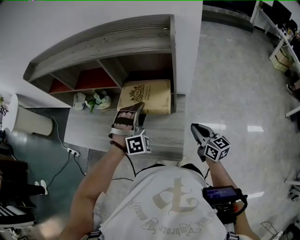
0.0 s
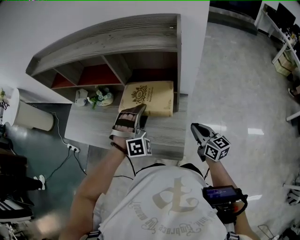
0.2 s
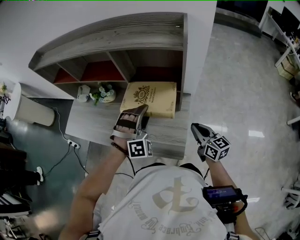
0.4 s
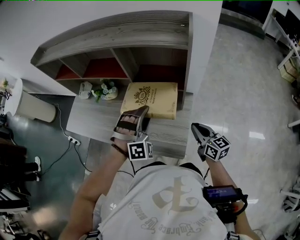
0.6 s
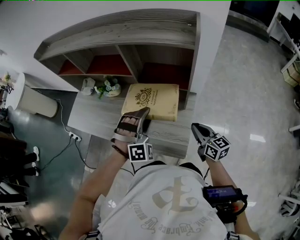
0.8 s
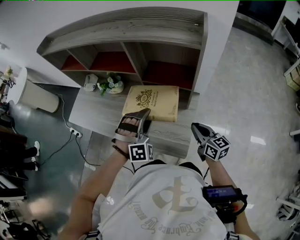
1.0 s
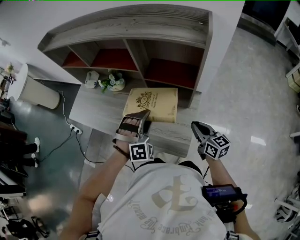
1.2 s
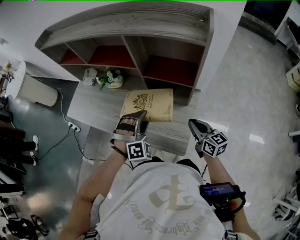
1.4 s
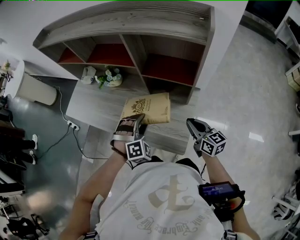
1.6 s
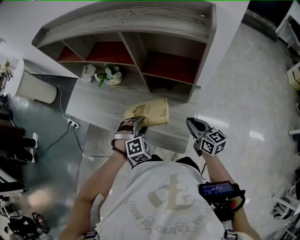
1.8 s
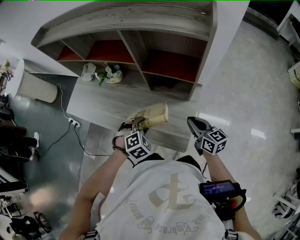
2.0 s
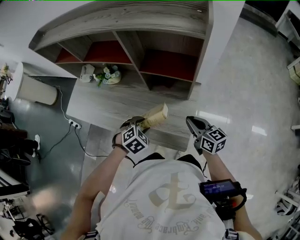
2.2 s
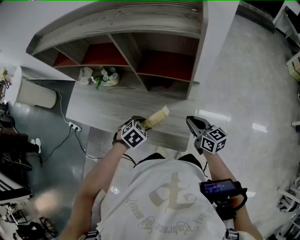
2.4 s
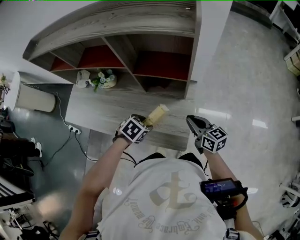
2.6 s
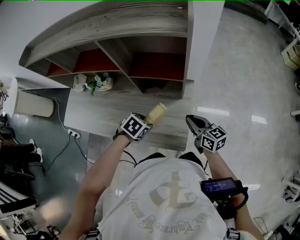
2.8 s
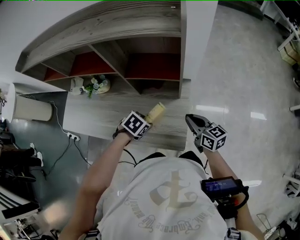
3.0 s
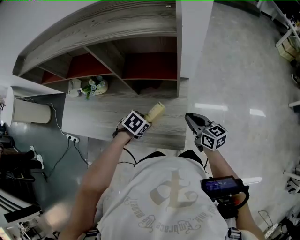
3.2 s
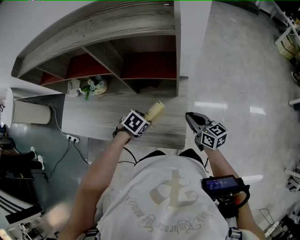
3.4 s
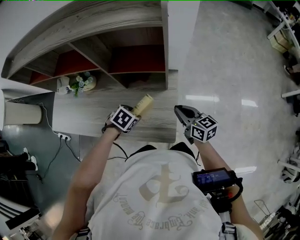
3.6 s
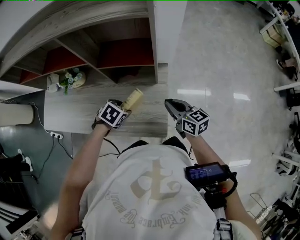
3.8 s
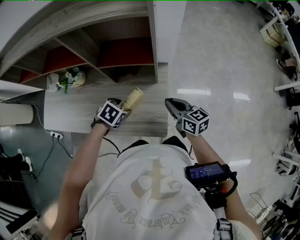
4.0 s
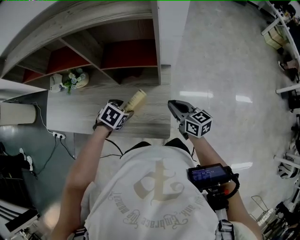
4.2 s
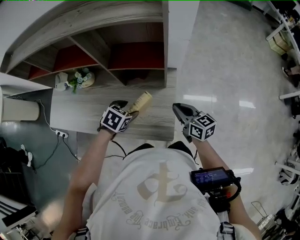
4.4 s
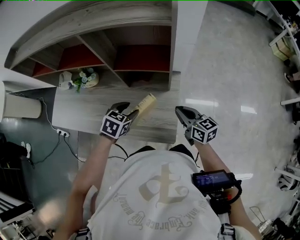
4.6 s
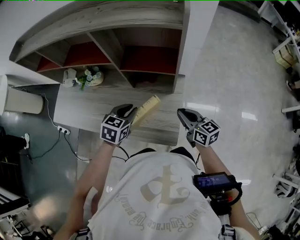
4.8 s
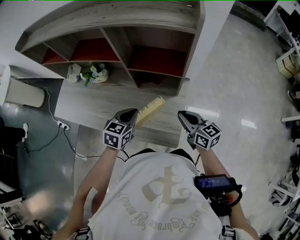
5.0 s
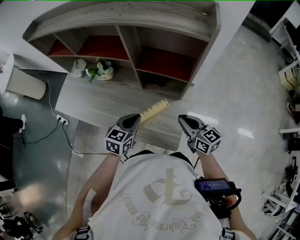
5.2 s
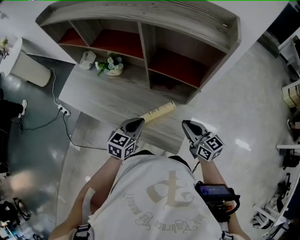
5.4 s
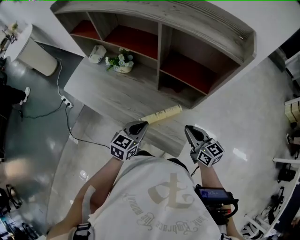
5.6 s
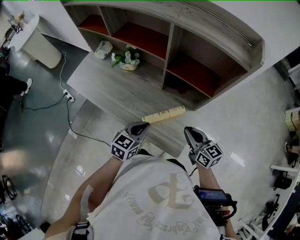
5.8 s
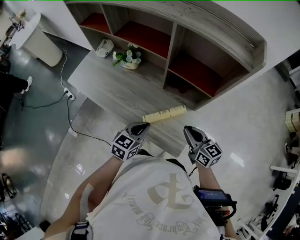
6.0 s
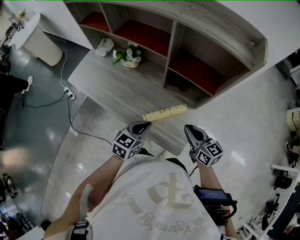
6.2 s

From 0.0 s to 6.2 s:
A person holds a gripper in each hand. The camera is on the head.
From 0.0 s to 1.6 s: The left gripper shifts about 15 cm to the left, downward and backward, and swivels roughly 20 degrees. Meanwhile the right gripper goes roughly 5 cm to the left.
From 1.6 s to 3.2 s: The left gripper moves downward, about 10 cm, and angles its fingers downward, by about 30 degrees.
From 3.2 s to 4.6 s: The left gripper is displaced upward by some 5 cm, and turns by about 20 degrees.
From 4.6 s to 6.2 s: The right gripper heads to the left, covering about 10 cm, and swivels approximately 20 degrees. Meanwhile the left gripper travels backward and to the left by about 10 cm, changes its angle by about 30 degrees, and closes up.

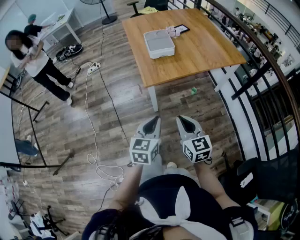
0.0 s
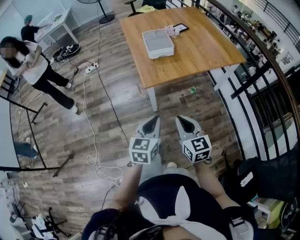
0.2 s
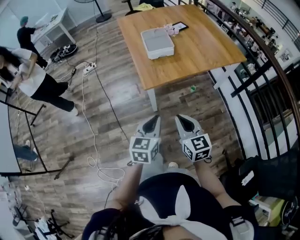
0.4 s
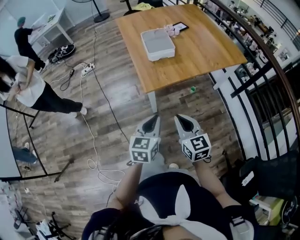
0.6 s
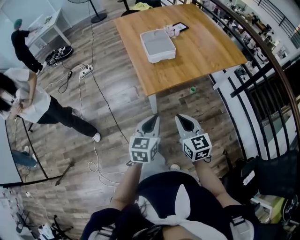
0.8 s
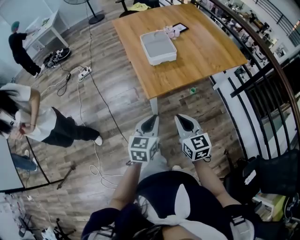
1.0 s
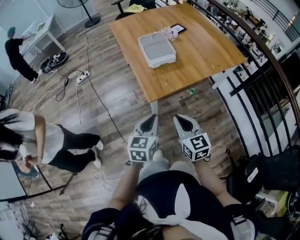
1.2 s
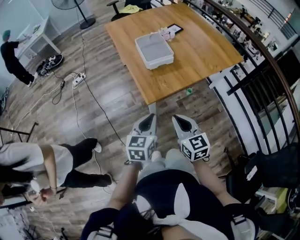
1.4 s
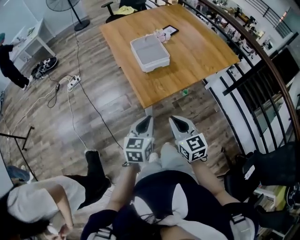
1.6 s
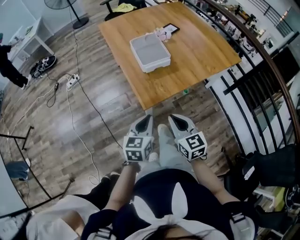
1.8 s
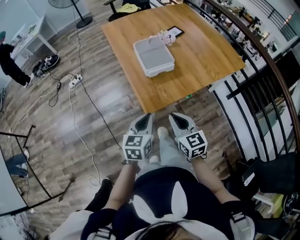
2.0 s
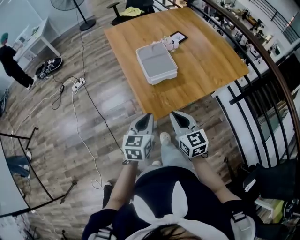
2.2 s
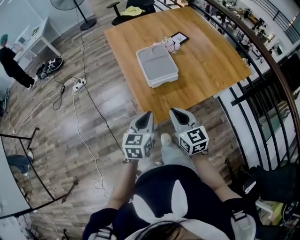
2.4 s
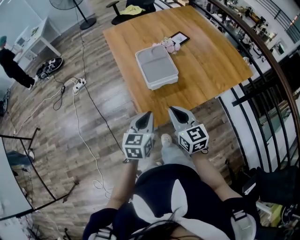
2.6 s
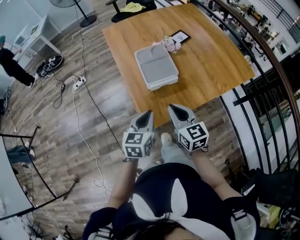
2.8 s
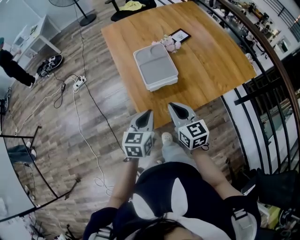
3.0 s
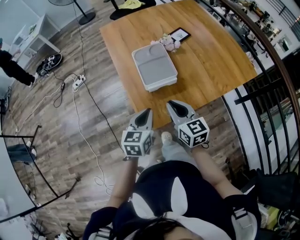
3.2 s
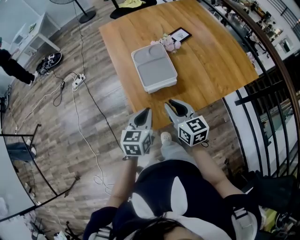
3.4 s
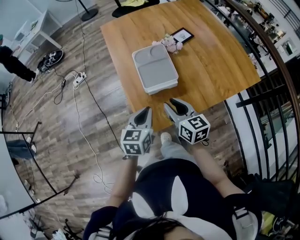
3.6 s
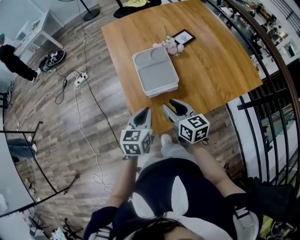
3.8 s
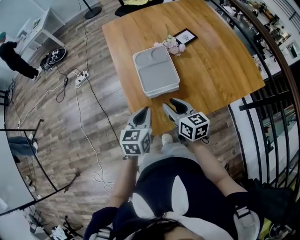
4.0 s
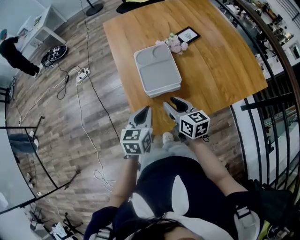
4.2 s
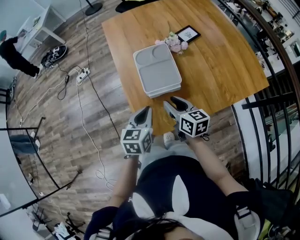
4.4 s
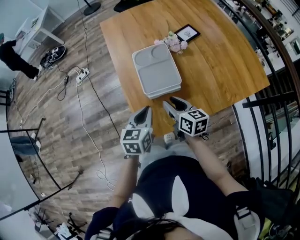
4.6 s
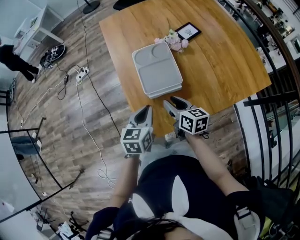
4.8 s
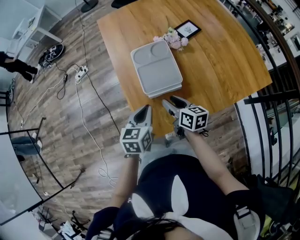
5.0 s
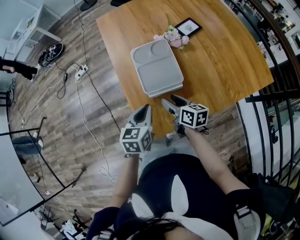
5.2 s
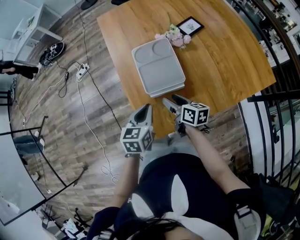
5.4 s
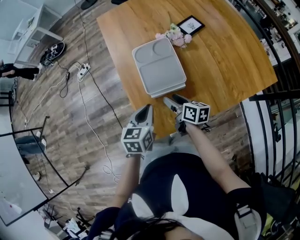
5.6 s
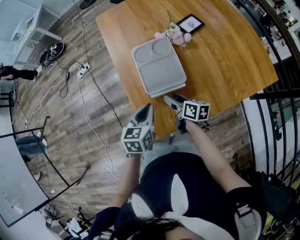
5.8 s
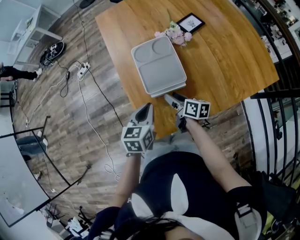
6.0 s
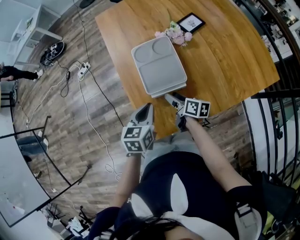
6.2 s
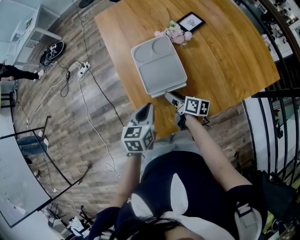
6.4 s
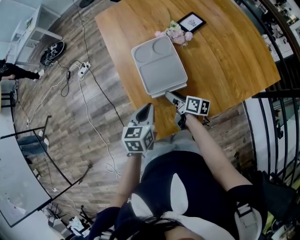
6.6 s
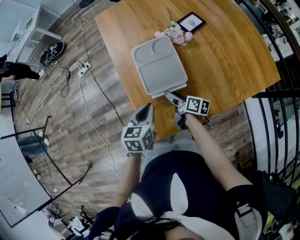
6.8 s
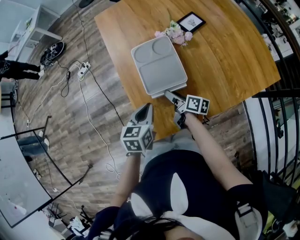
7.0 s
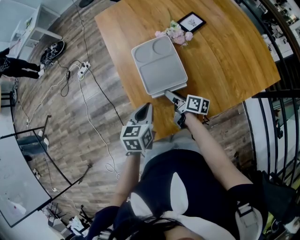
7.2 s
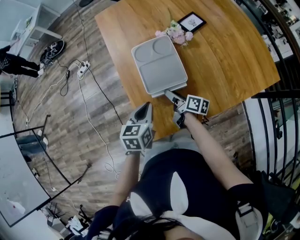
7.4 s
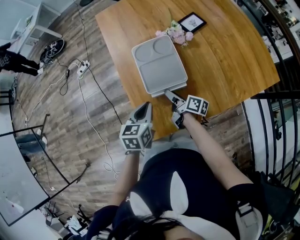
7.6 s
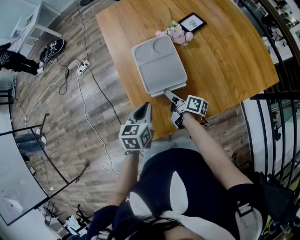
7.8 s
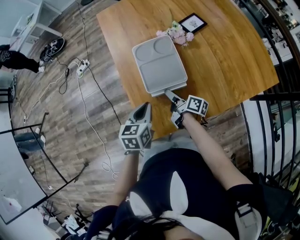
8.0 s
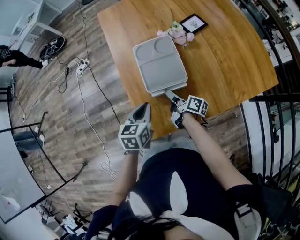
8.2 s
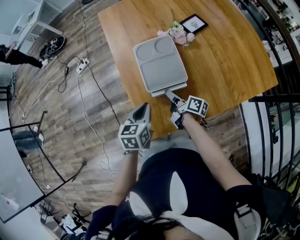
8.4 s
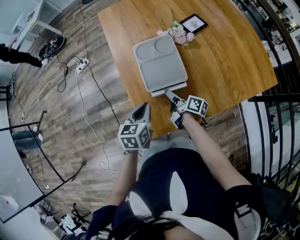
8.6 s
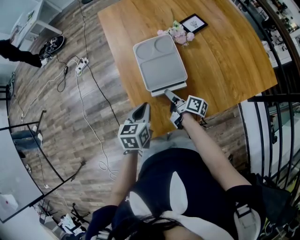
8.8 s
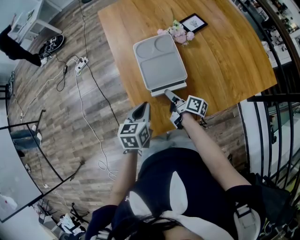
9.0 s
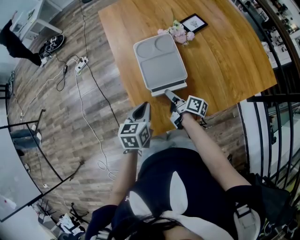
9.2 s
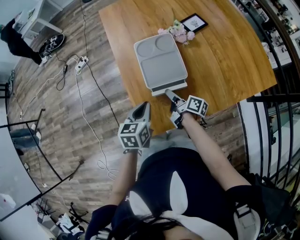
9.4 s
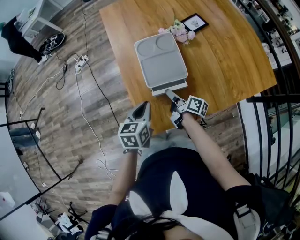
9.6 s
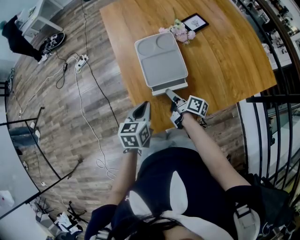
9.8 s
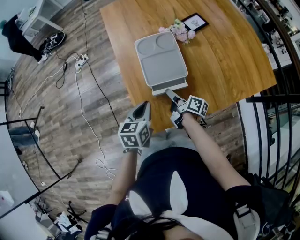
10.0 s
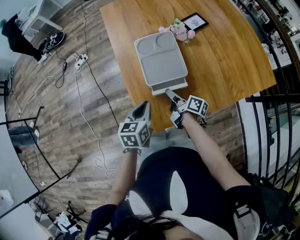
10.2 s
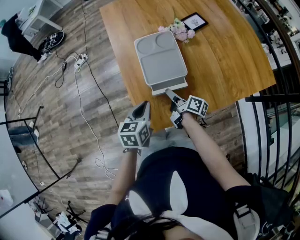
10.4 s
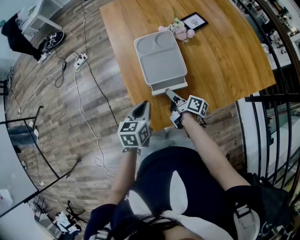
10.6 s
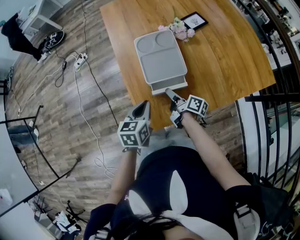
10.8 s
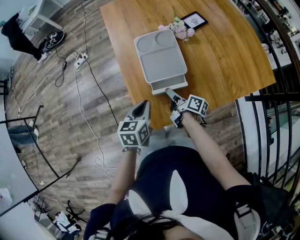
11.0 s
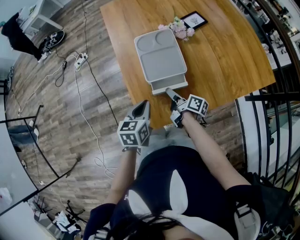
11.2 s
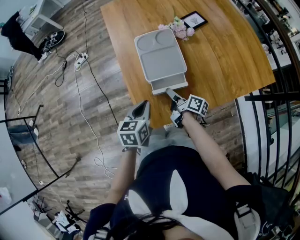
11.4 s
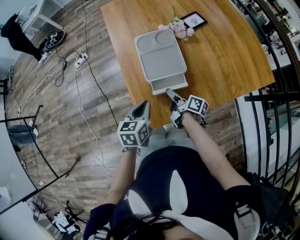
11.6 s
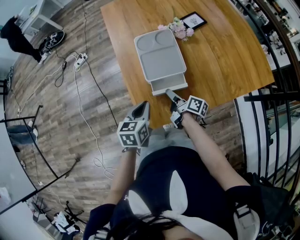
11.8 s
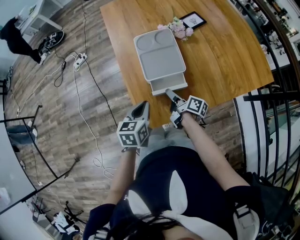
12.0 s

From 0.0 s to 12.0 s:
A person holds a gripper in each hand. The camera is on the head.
From 0.0 s to 1.6 s: The two grippers go some 20 cm forward and to the left.
From 1.6 s to 3.0 s: The two grippers go some 25 cm forward.
From 3.0 s to 4.4 s: The right gripper goes some 15 cm forward and downward, swivels roughly 20 degrees, and opens up, while the left gripper goes about 10 cm forward.
From 4.4 s to 6.0 s: The right gripper shifts about 15 cm downward and forward, changes its angle by about 30 degrees, and opens up, while the left gripper moves some 5 cm.
From 6.0 s to 7.6 s: The grippers stay close to where they were, moving slightly.
From 7.6 s to 12.0 s: There are only small adjustments of the grippers.

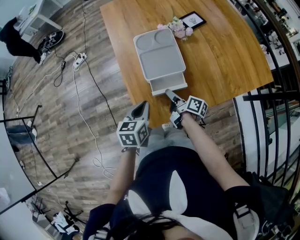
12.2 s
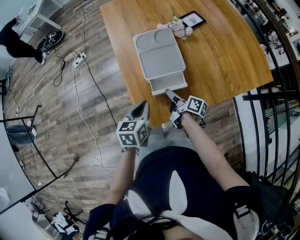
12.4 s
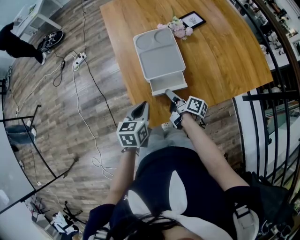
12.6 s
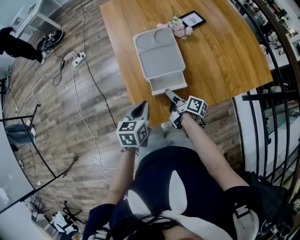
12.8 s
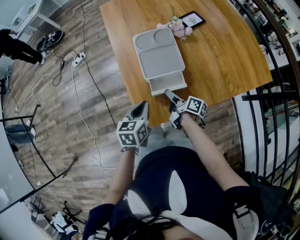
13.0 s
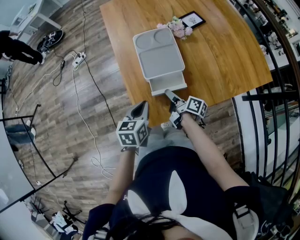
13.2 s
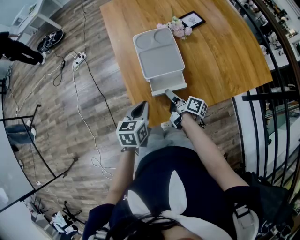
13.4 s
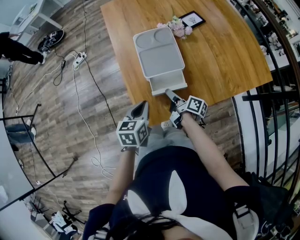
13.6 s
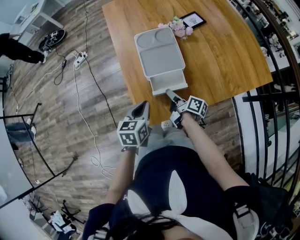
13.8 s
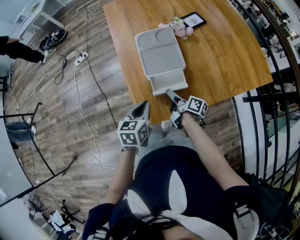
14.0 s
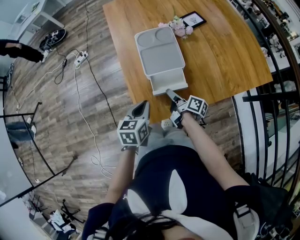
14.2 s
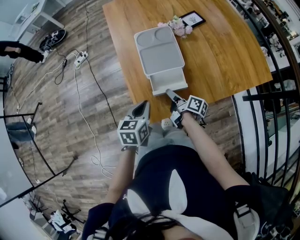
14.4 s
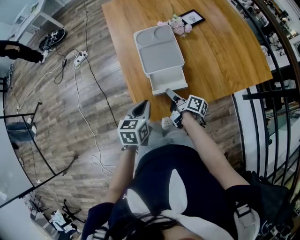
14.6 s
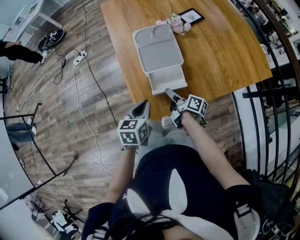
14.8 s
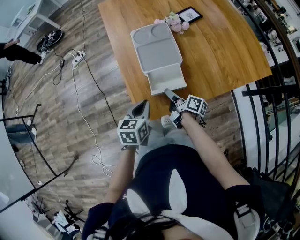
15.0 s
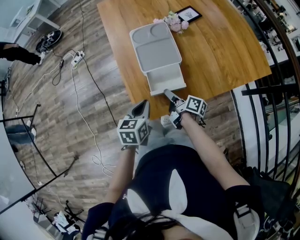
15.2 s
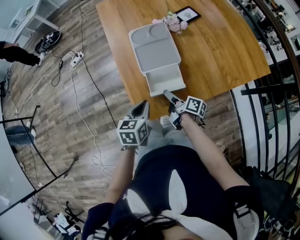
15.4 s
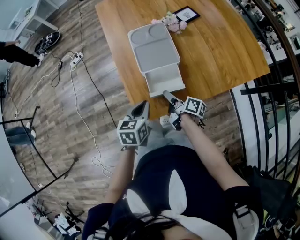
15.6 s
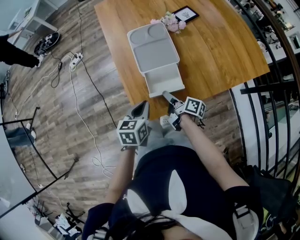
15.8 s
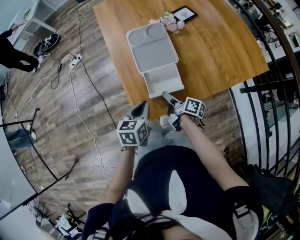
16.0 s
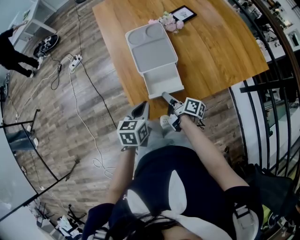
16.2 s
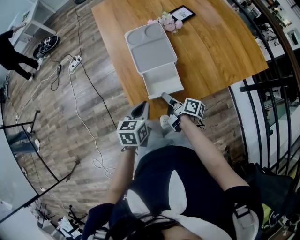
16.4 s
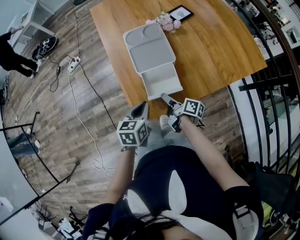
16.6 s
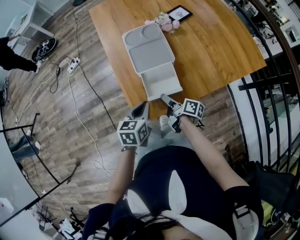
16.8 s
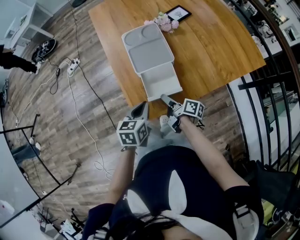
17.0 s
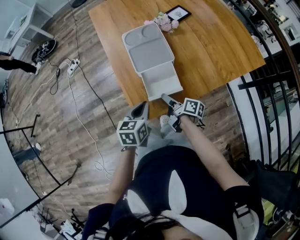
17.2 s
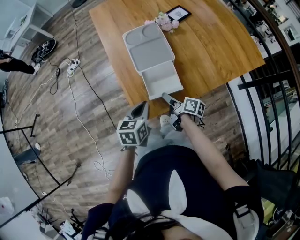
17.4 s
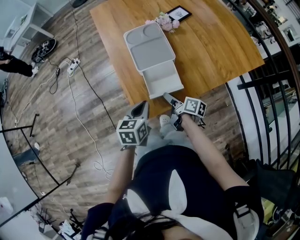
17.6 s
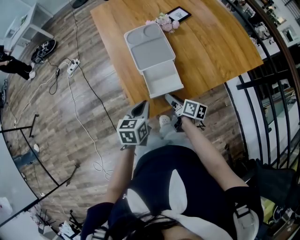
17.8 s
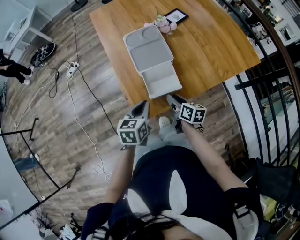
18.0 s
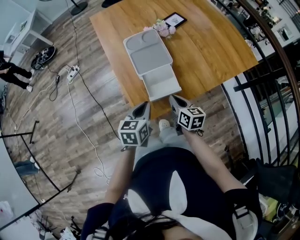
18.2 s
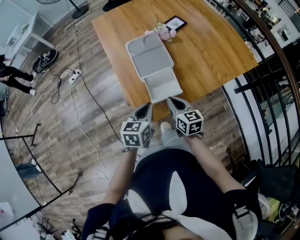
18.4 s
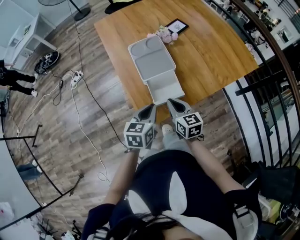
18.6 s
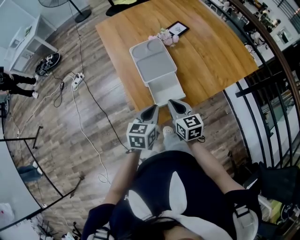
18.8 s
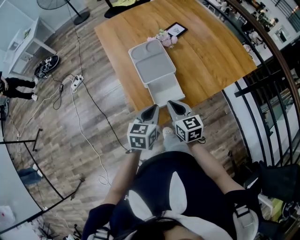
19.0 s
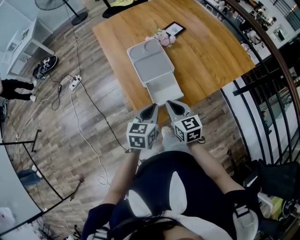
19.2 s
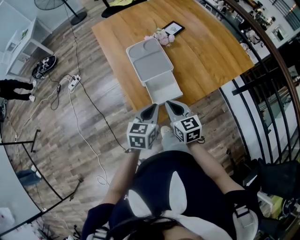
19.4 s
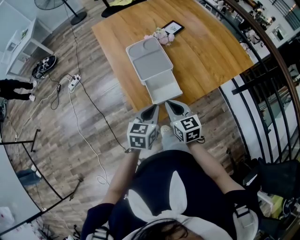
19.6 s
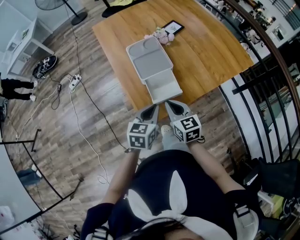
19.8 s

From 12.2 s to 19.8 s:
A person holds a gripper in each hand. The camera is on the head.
From 12.2 s to 13.8 s: Both grippers stay about where they are.
From 13.8 s to 16.8 s: The grippers stay close to where they were, moving slightly.
From 16.8 s to 18.2 s: The right gripper moves upward, about 5 cm, twists approximately 40 degrees counterclockwise, seen from behind, and closes its fingers.
From 18.2 s to 19.8 s: The right gripper goes roughly 10 cm upward, and changes its angle by about 20 degrees.
